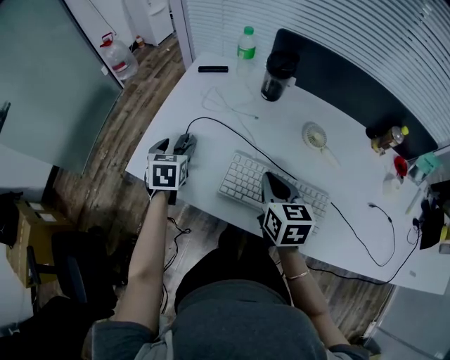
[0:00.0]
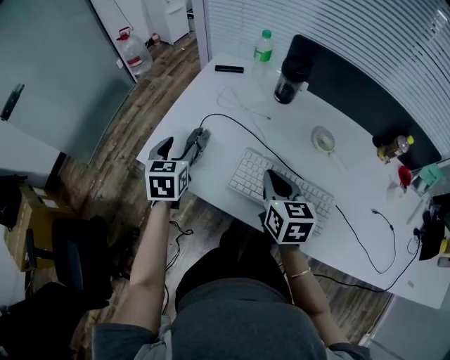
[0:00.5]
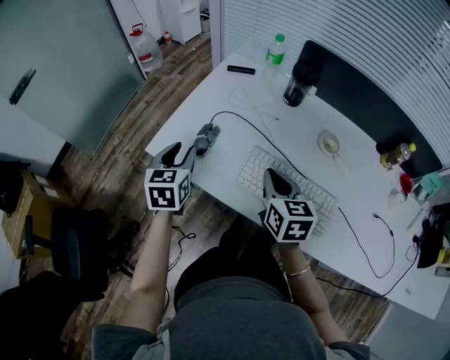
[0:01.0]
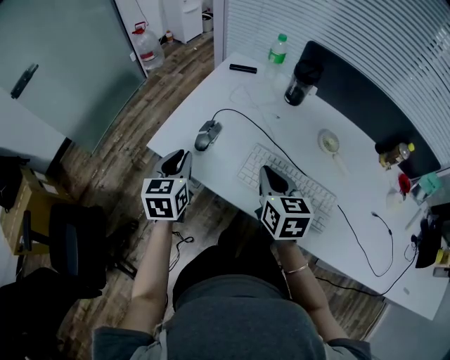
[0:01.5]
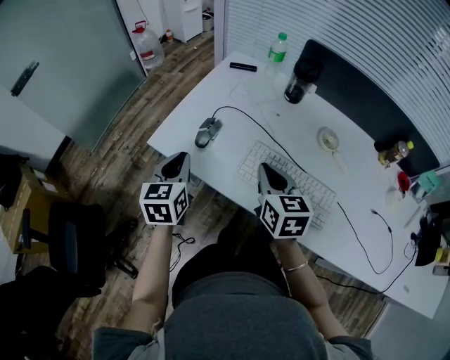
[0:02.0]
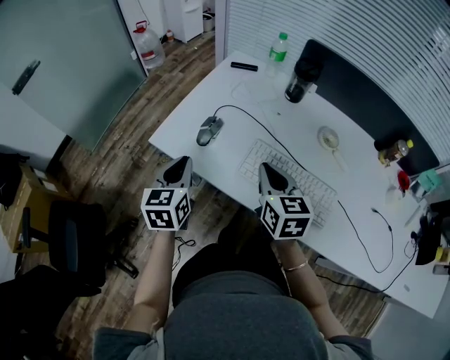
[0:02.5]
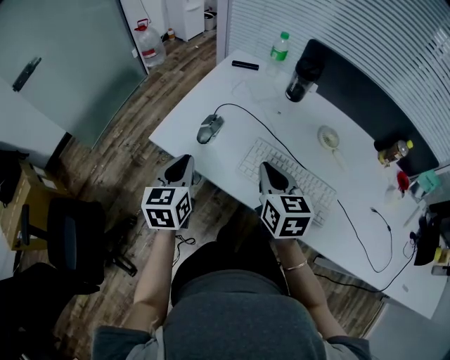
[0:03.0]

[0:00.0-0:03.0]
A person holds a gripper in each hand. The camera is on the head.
0:00.0 to 0:01.5: The left gripper is displaced backward and upward by roughly 15 cm, and closes up. The right gripper travels to the left by some 5 cm.
0:01.5 to 0:03.0: The grippers make only small movements.

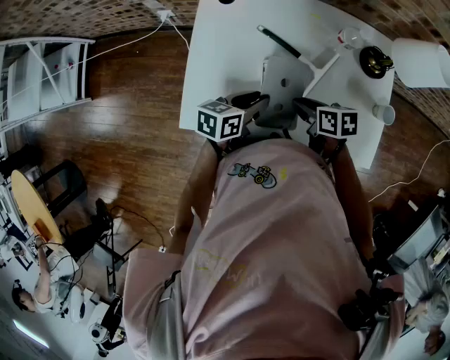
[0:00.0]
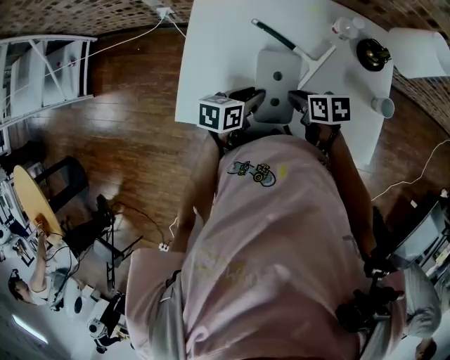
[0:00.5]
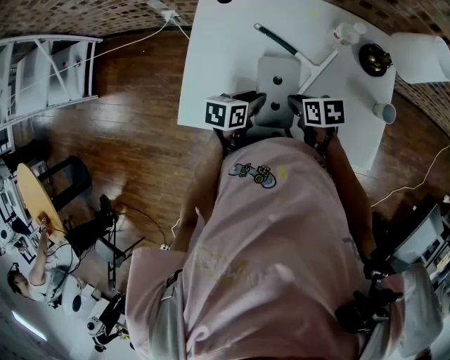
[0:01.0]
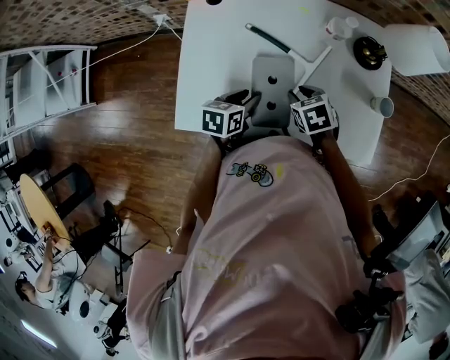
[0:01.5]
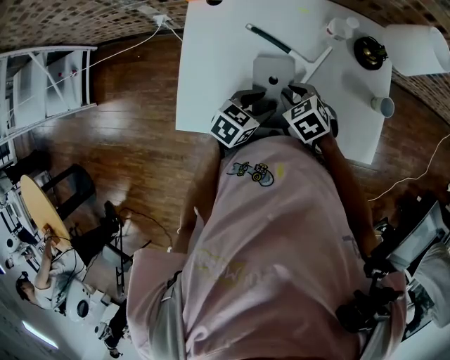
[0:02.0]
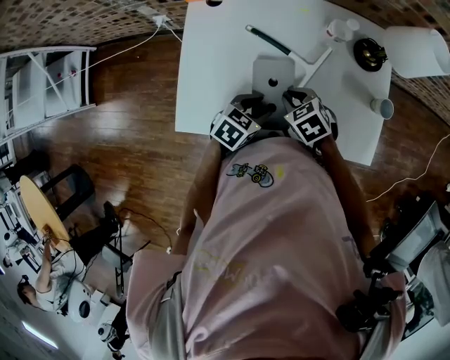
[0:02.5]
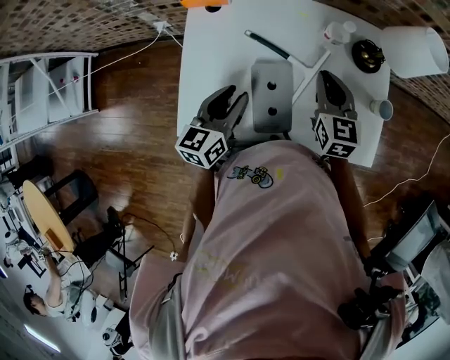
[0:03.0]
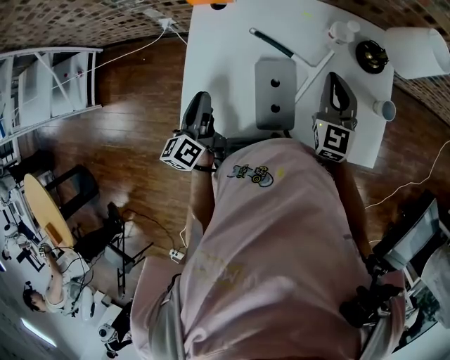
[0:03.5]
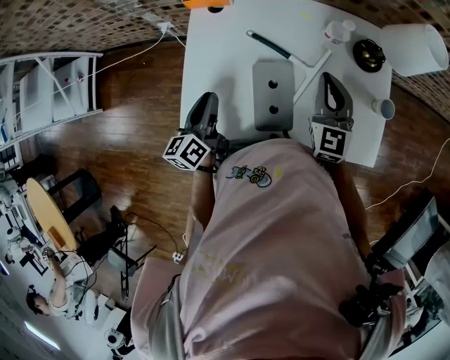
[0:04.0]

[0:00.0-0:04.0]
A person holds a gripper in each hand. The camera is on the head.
0:00.0 to 0:02.0: The right gripper rotates around the line of its fingers by approximately 40 degrees, counterclockwise from behind, while the left gripper moves to the right, some 5 cm, and changes its angle by approximately 30 degrees.
0:02.0 to 0:04.0: The right gripper is displaced upward, to the right and forward by about 15 cm, tips its fingers upward by approximately 50 degrees, and closes its fingers, while the left gripper goes roughly 20 cm to the left and upward, turns by some 60 degrees, and closes its fingers.

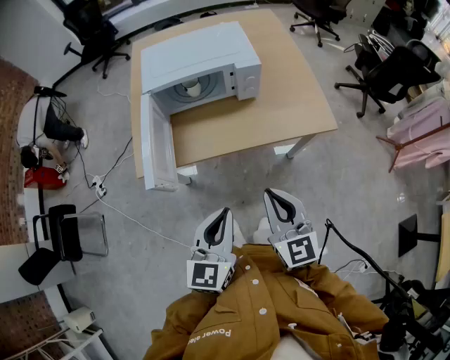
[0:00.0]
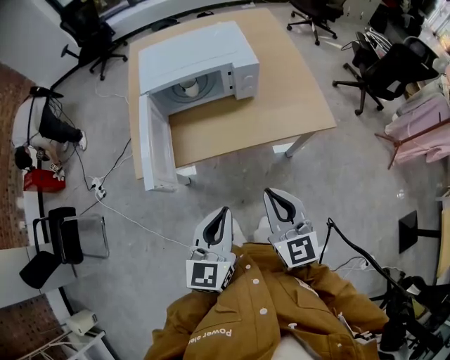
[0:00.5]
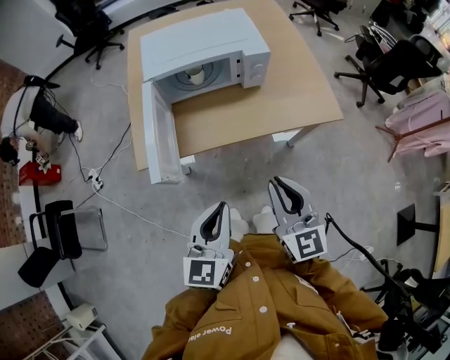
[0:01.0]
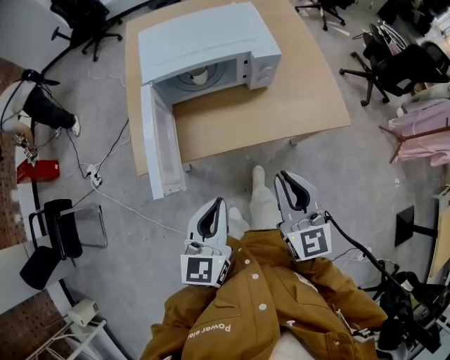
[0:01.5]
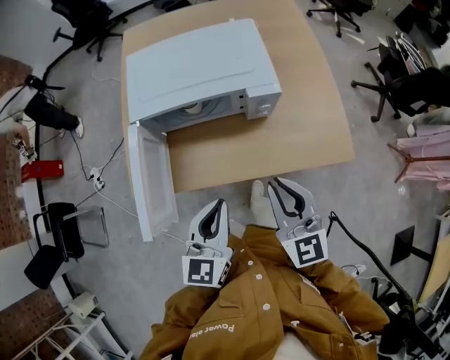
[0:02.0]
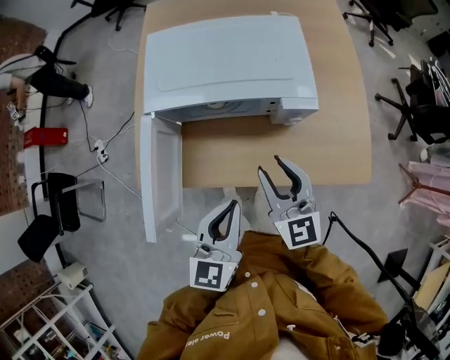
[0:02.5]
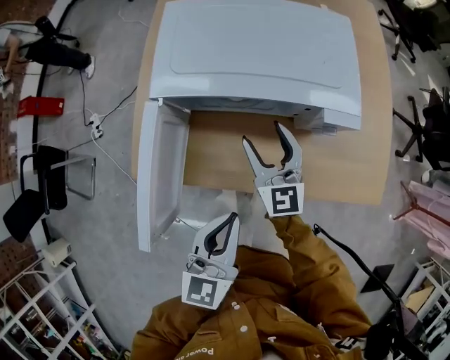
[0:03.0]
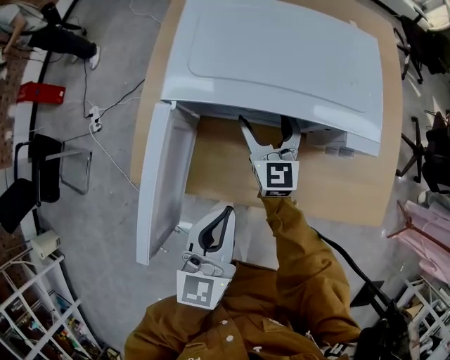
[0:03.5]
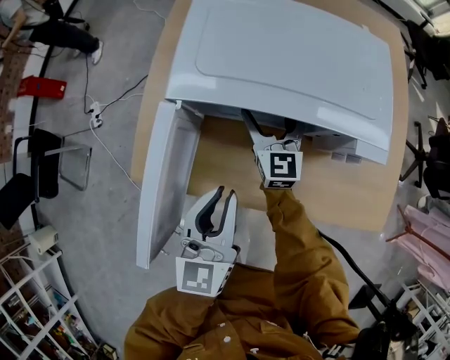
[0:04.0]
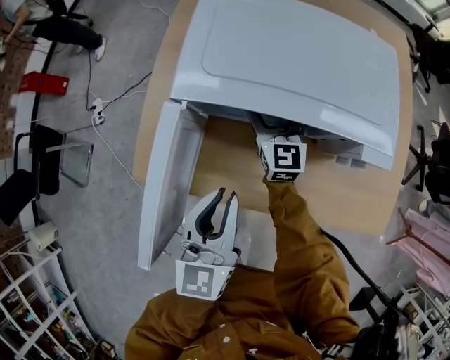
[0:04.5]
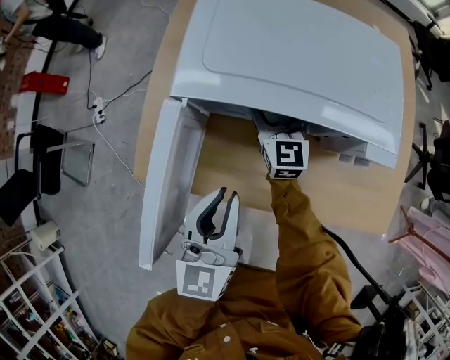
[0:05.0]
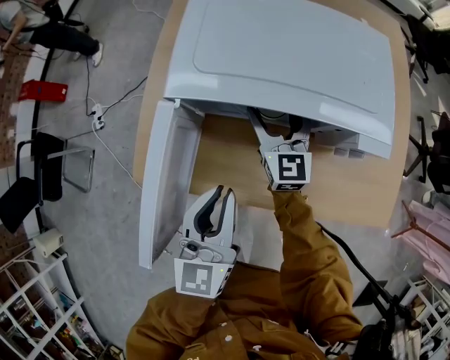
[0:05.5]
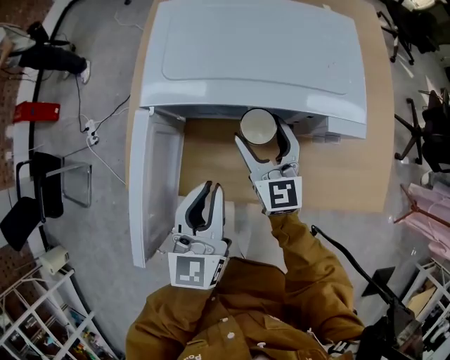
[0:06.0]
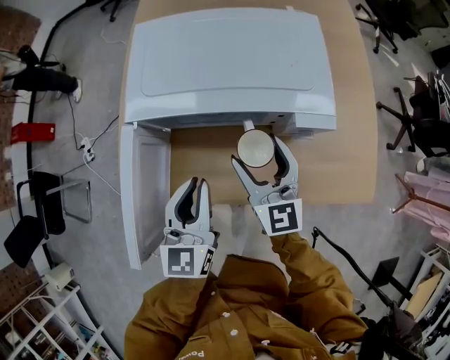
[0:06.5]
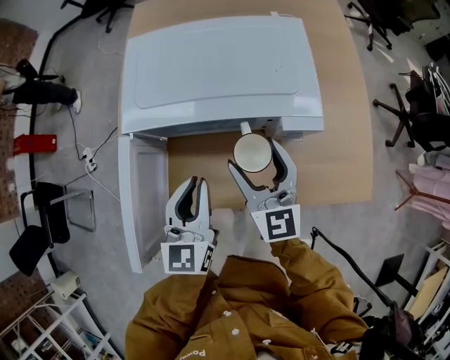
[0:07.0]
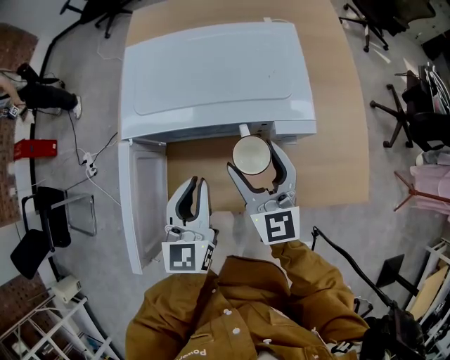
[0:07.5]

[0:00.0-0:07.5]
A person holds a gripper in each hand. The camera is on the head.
0:00.0 to 0:02.0: Both grippers travel together forward, about 20 cm.
0:02.0 to 0:04.0: The left gripper goes approximately 20 cm forward, to the left and downward, and changes its angle by some 20 degrees. The right gripper travels forward, downward and to the left by roughly 40 cm, and opens.
0:04.0 to 0:05.5: The grippers make only small movements.
0:05.5 to 0:07.5: The left gripper travels to the right by some 5 cm. The right gripper travels upward, backward and to the right by roughly 20 cm.

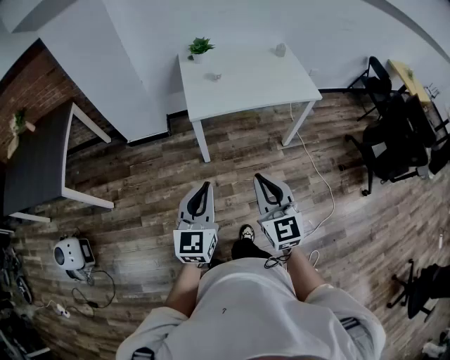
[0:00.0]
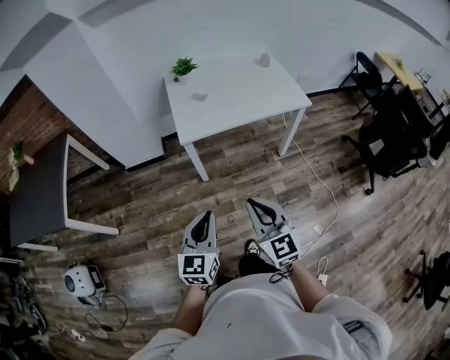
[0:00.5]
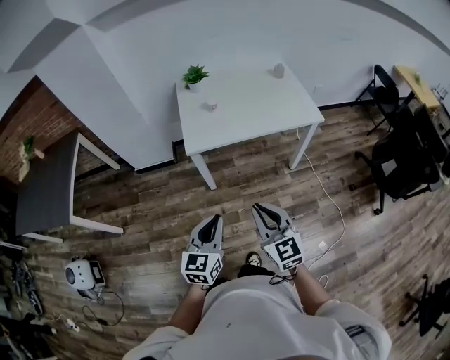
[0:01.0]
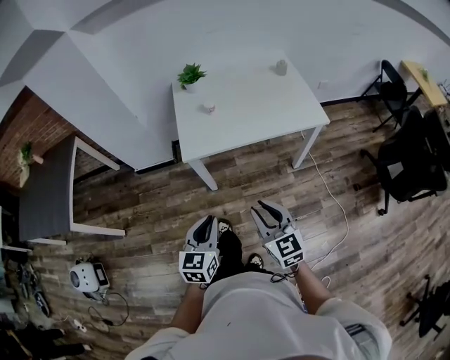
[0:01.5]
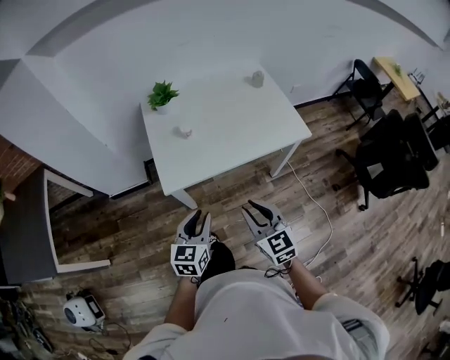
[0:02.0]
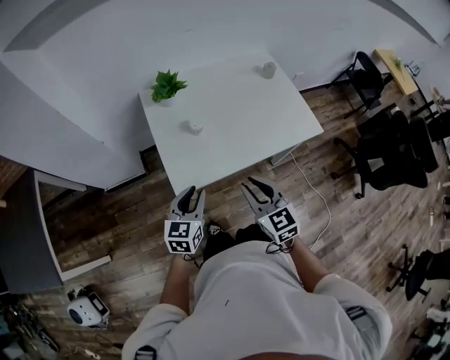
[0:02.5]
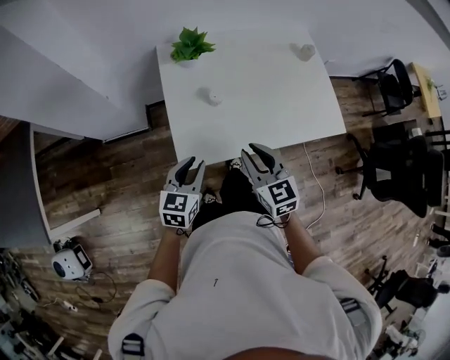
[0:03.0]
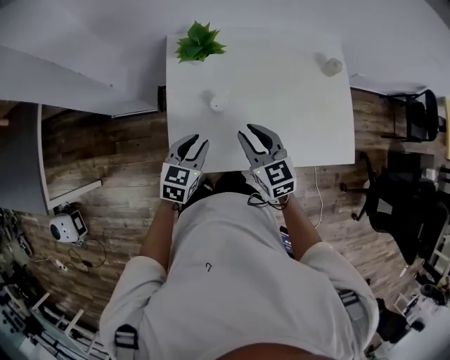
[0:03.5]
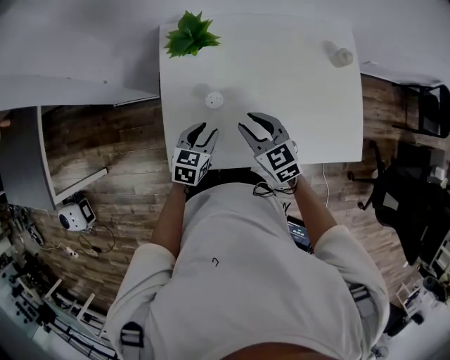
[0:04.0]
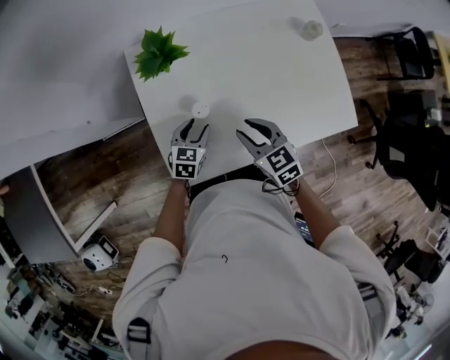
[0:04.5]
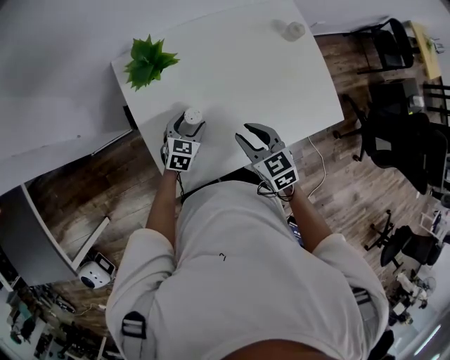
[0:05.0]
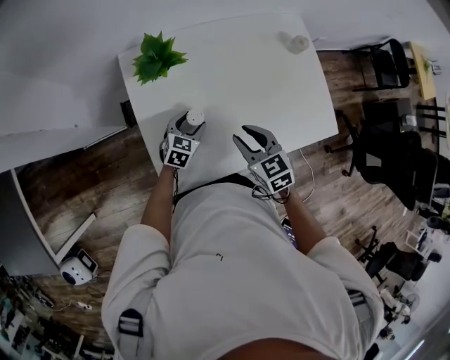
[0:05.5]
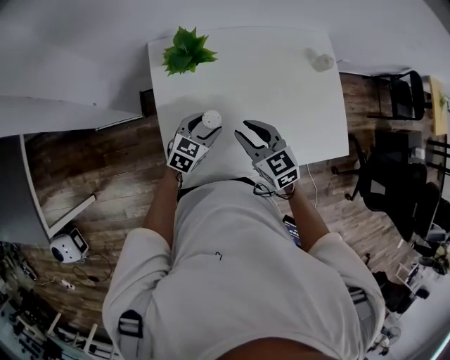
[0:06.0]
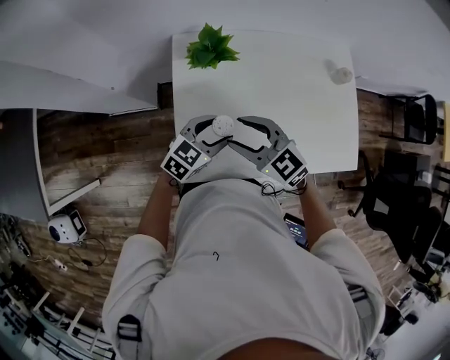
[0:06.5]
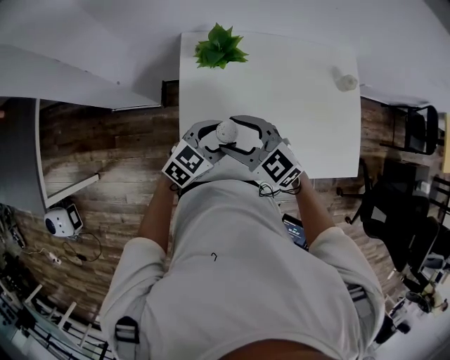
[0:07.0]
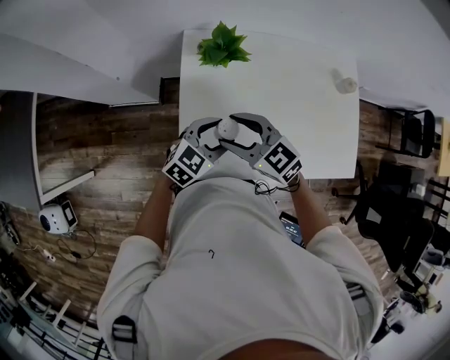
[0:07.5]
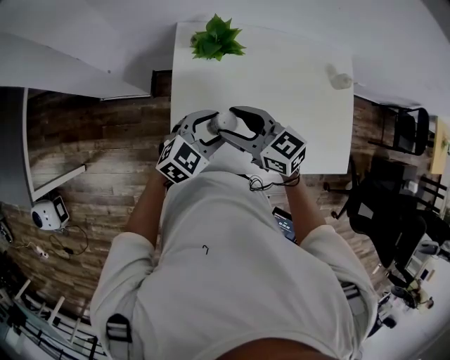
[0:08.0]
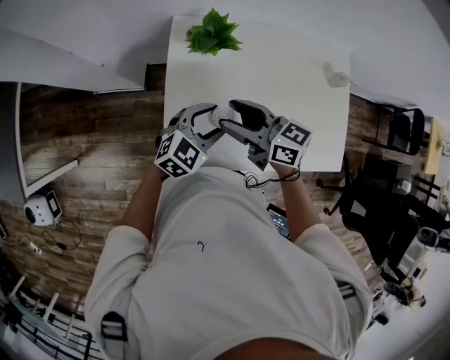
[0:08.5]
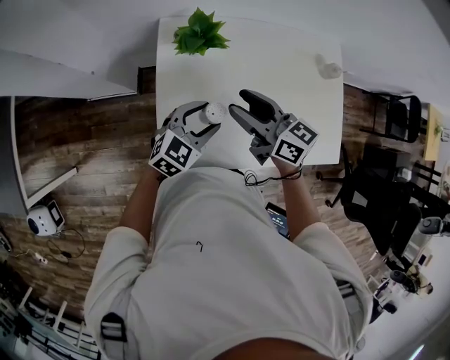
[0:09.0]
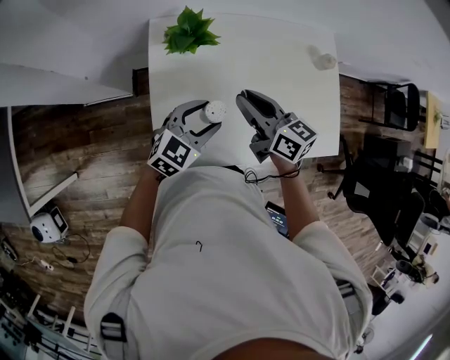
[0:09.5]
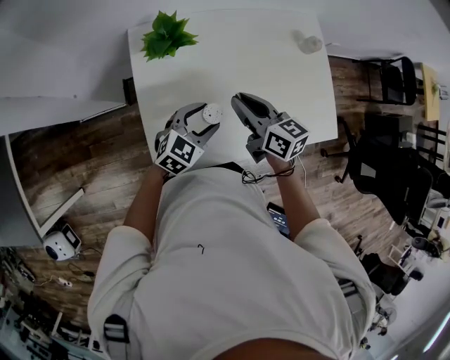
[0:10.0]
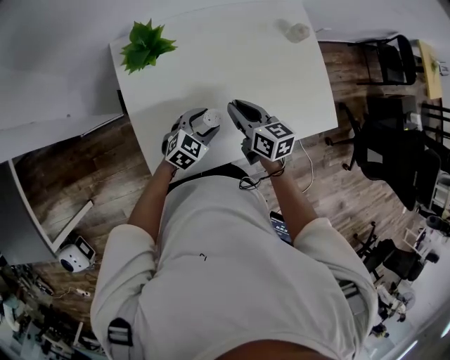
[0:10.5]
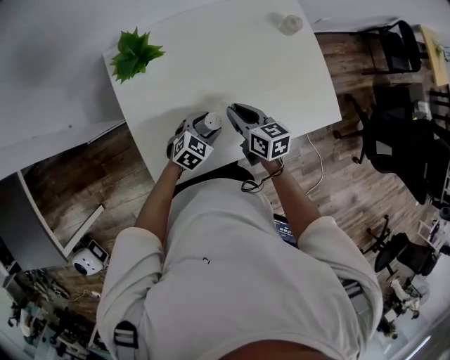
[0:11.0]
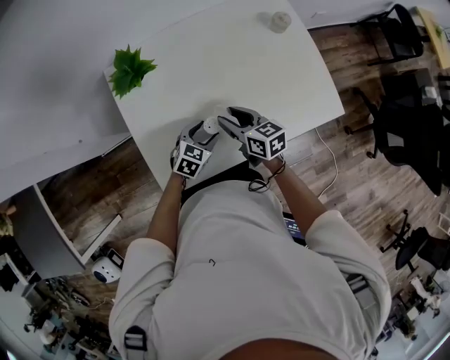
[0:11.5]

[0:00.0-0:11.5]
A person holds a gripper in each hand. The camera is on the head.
0:00.0 to 0:02.0: Both grippers move forward, roughly 30 cm. The left gripper changes its angle by roughly 20 degrees.
0:02.0 to 0:04.0: The right gripper shifts some 40 cm forward, and rotates approximately 30 degrees; the left gripper travels forward and downward by about 40 cm, and changes its angle by about 20 degrees.
0:04.0 to 0:06.0: The left gripper shifts some 5 cm forward, changes its angle by approximately 20 degrees, and opens up.
0:06.0 to 0:07.5: The right gripper heads to the left, covering about 10 cm, turns by approximately 30 degrees, and opens its fingers; the left gripper travels upward by some 10 cm.
0:07.5 to 0:09.5: The right gripper heads to the right and forward, covering approximately 15 cm, swivels roughly 40 degrees, and closes.
0:09.5 to 0:11.5: The two grippers go roughly 15 cm downward and to the right. The left gripper turns by about 20 degrees.
